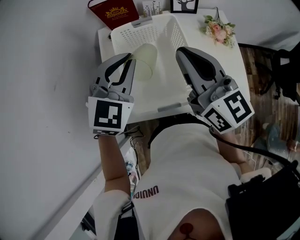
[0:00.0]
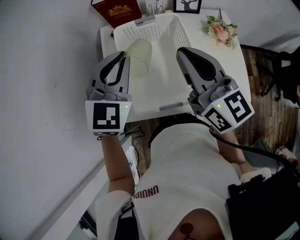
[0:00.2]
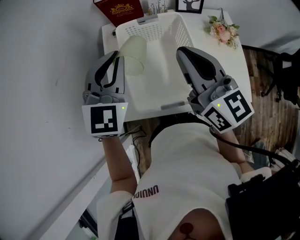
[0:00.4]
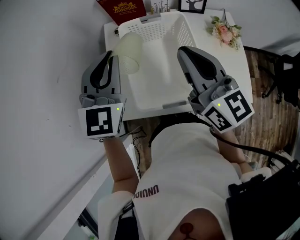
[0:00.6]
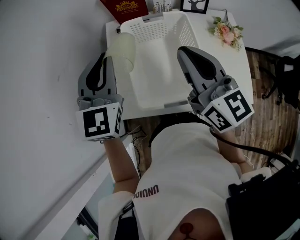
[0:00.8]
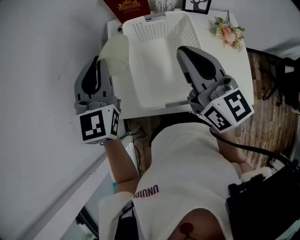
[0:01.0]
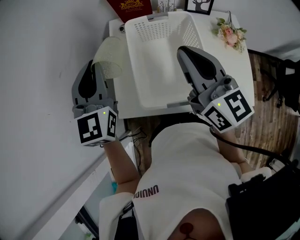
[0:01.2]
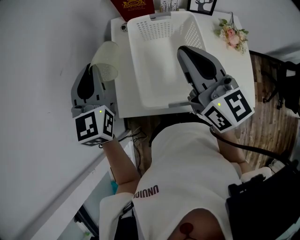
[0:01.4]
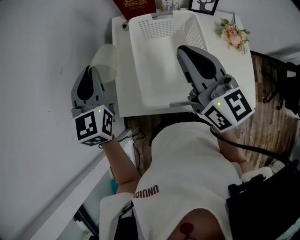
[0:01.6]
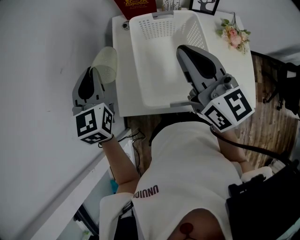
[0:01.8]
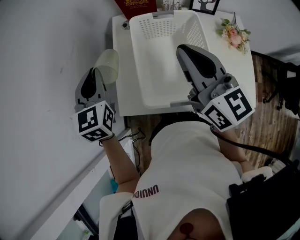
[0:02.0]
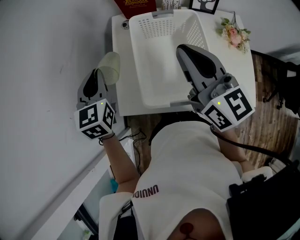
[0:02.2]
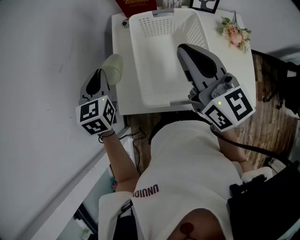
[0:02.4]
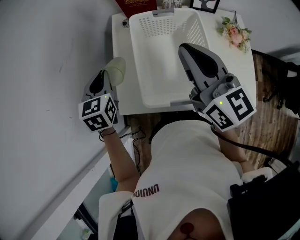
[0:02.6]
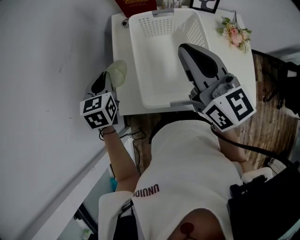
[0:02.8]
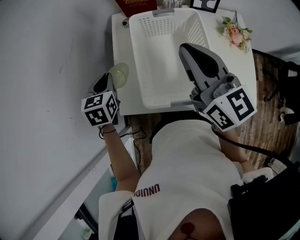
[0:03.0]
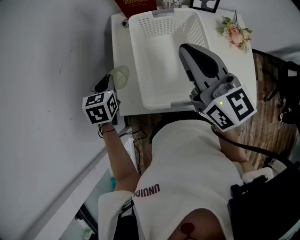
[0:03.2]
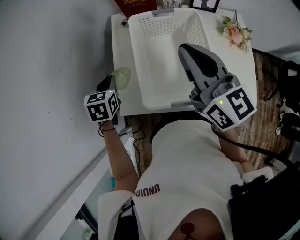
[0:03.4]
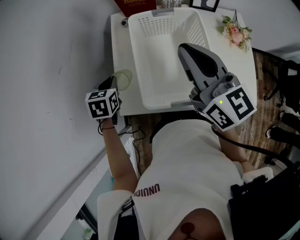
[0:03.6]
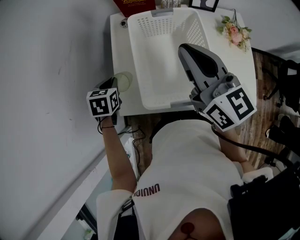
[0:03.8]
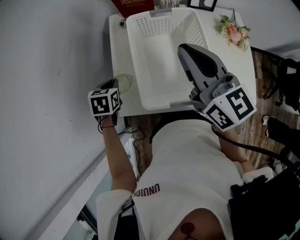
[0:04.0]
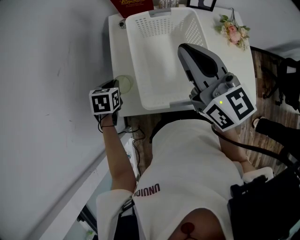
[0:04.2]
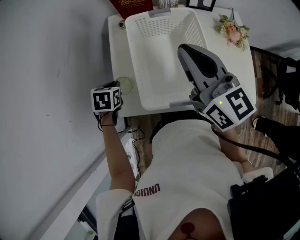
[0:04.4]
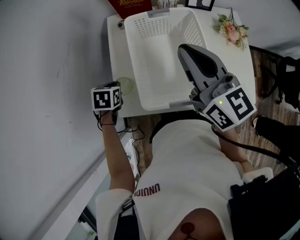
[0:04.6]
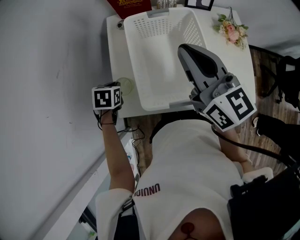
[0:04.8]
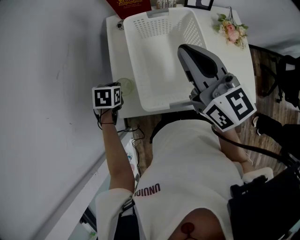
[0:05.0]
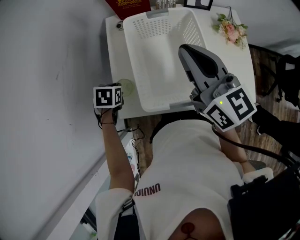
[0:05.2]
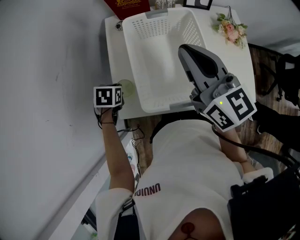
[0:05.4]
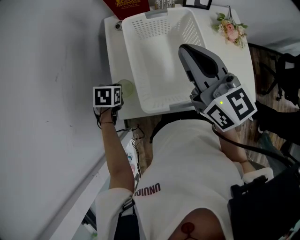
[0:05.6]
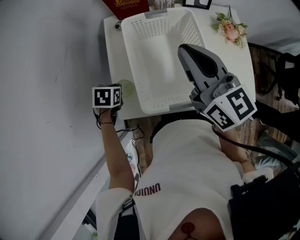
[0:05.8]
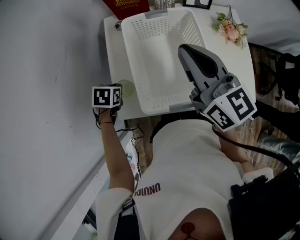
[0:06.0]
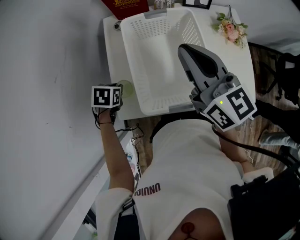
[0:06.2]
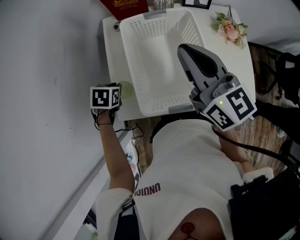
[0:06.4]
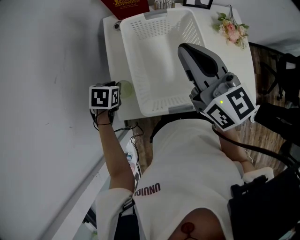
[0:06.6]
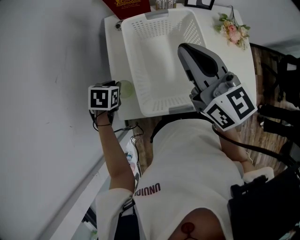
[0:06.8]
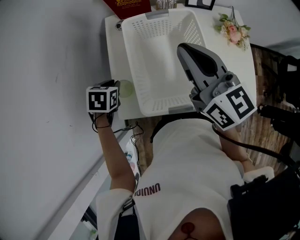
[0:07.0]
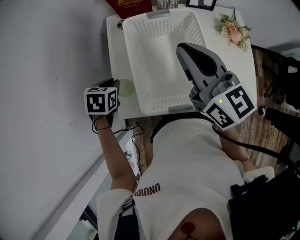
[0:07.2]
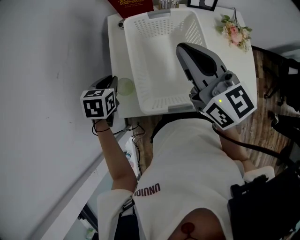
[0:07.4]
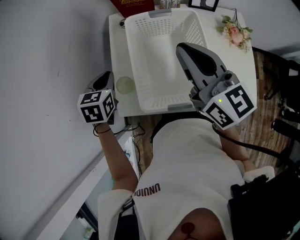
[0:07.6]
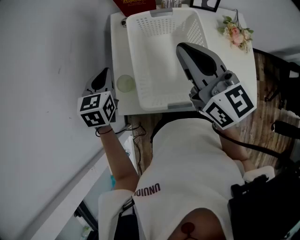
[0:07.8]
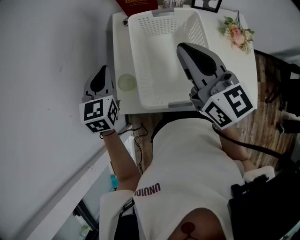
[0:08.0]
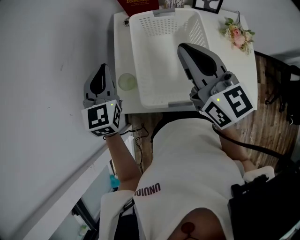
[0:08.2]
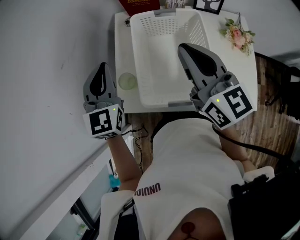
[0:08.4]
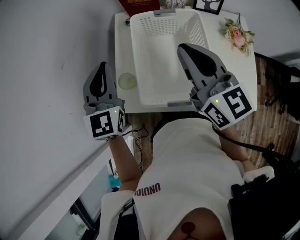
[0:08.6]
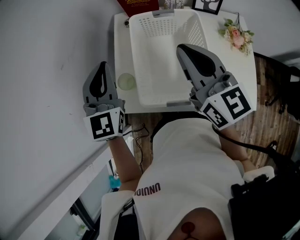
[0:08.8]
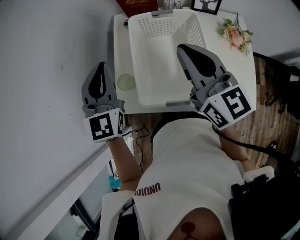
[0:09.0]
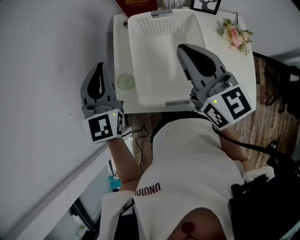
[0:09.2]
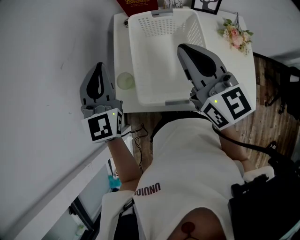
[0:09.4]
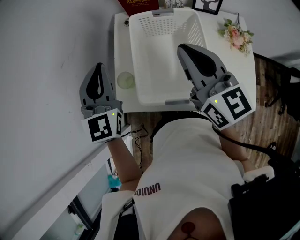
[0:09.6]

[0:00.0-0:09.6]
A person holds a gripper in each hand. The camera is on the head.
0:00.0 to 0:01.6: The left gripper is displaced to the left by about 20 cm, and swivels some 40 degrees.
0:01.6 to 0:03.2: The left gripper travels downward by about 15 cm, and points its fingers approximately 30 degrees further downward.
0:03.2 to 0:04.8: The left gripper goes about 10 cm downward, and rotates roughly 20 degrees.
0:04.8 to 0:06.4: There are only small adjustments of the grippers.
0:06.4 to 0:08.0: The left gripper travels upward by approximately 20 cm, and tilts its fingers some 50 degrees upward.
0:08.0 to 0:09.6: The left gripper is displaced upward by some 10 cm, and turns by roughly 20 degrees.

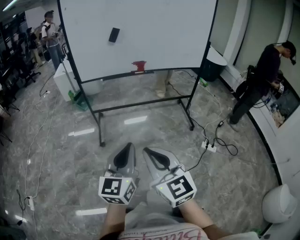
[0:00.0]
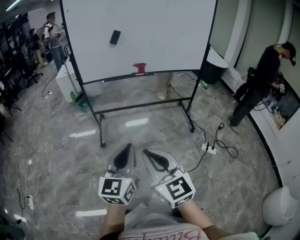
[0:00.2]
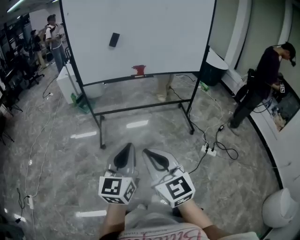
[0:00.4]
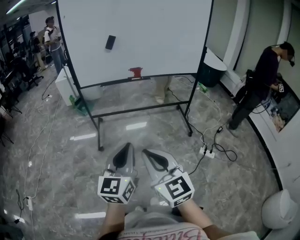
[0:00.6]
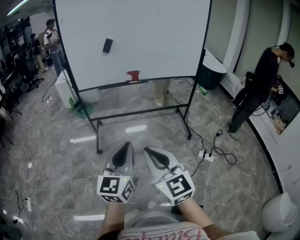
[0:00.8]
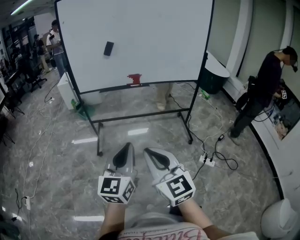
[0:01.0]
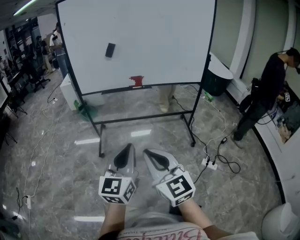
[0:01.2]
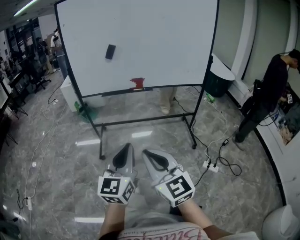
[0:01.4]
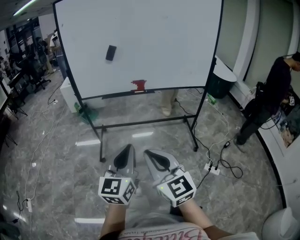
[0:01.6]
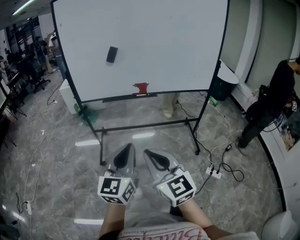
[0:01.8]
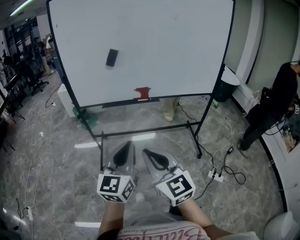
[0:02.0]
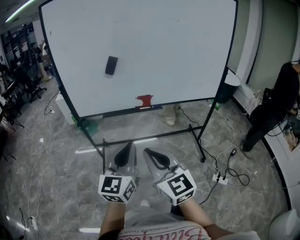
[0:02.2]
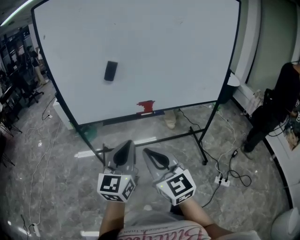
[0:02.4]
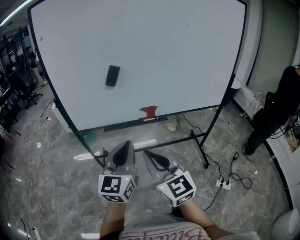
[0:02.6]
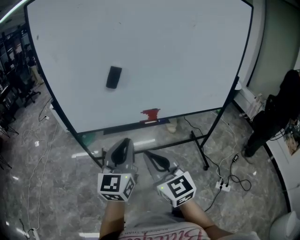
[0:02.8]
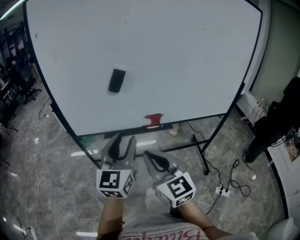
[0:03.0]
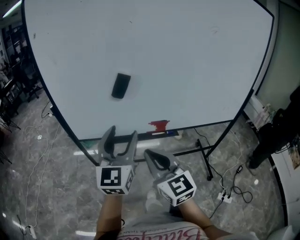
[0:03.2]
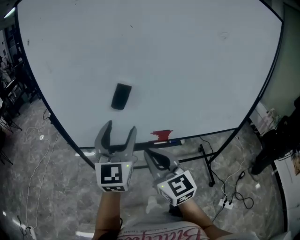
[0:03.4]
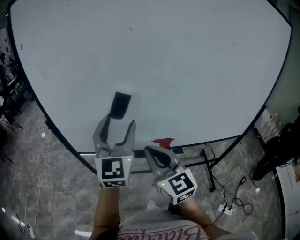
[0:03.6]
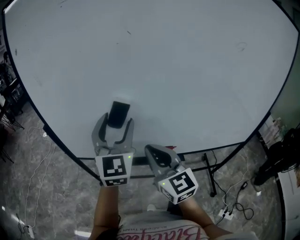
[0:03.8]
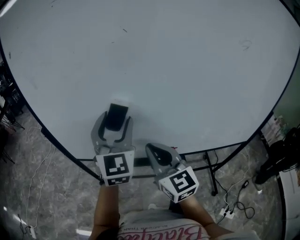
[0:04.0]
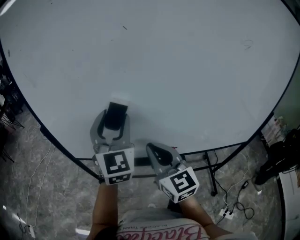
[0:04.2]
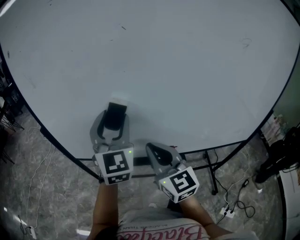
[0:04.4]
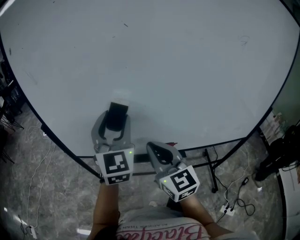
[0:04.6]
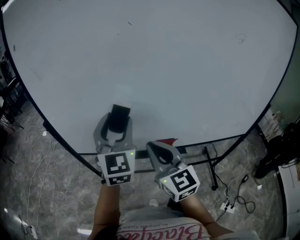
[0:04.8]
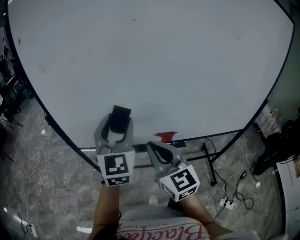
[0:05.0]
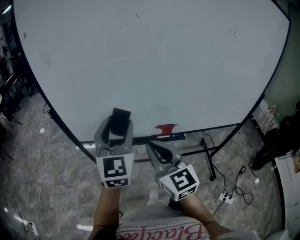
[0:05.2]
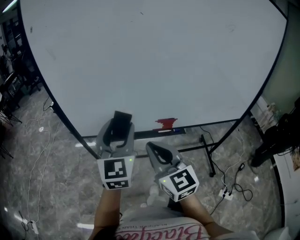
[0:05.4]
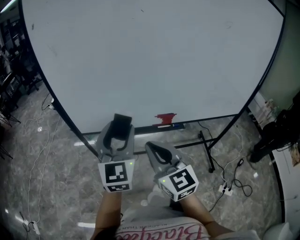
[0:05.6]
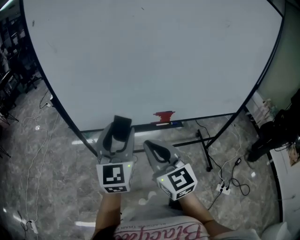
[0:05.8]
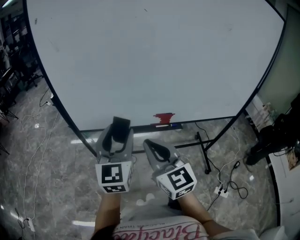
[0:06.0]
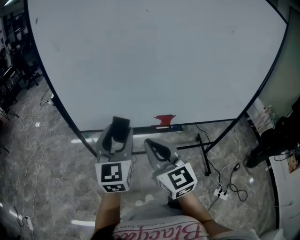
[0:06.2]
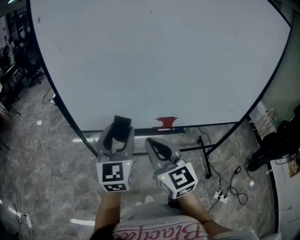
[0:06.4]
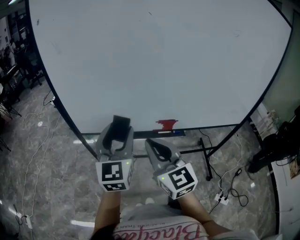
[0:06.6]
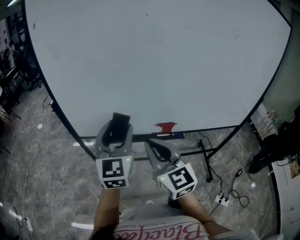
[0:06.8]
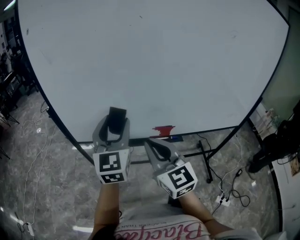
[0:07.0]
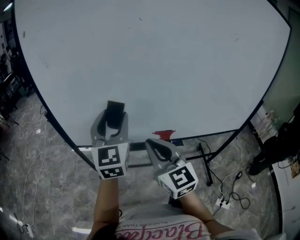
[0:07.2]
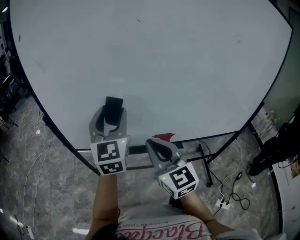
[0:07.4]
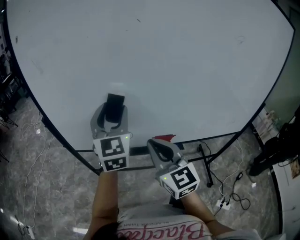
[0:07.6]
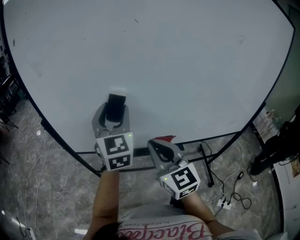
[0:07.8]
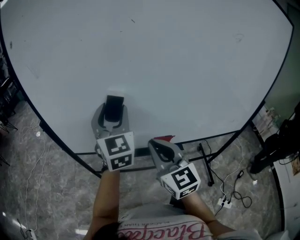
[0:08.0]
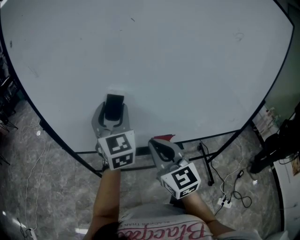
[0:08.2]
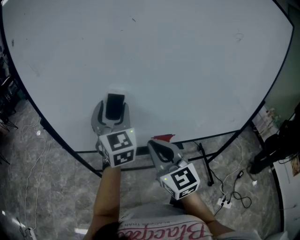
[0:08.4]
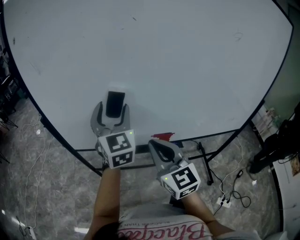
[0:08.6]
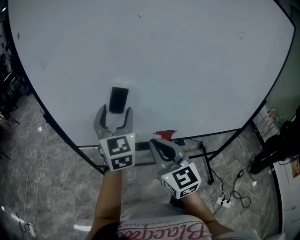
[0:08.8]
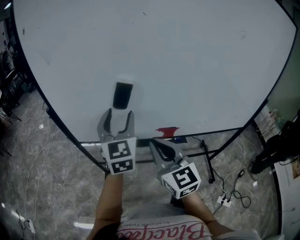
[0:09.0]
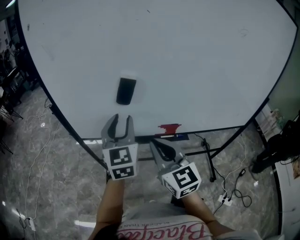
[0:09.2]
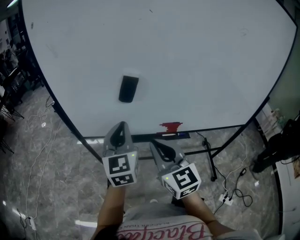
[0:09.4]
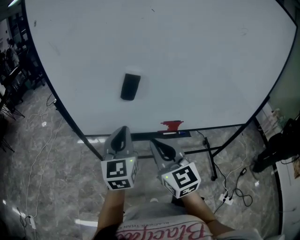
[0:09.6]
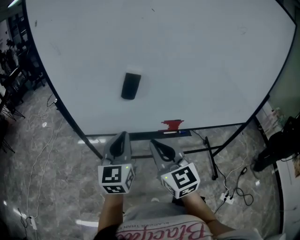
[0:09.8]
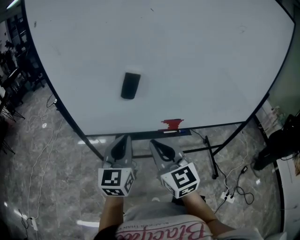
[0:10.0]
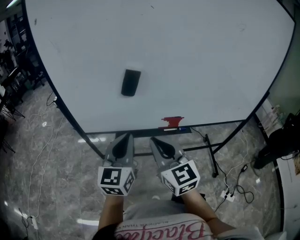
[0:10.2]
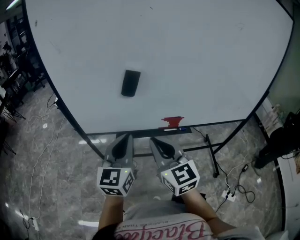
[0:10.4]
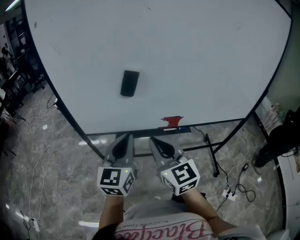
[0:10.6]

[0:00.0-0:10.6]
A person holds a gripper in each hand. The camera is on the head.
0:00.0 to 0:01.6: Both grippers travel together forward and to the right, about 15 cm.
0:01.6 to 0:03.0: The two grippers go about 35 cm forward. The left gripper opens its fingers.
0:03.0 to 0:04.6: The two grippers go approximately 20 cm forward. The left gripper changes its angle by about 30 degrees.
0:04.6 to 0:06.0: The right gripper shifts roughly 15 cm backward and to the left; the left gripper heads backward and downward, covering approximately 15 cm.
0:06.0 to 0:07.6: The left gripper shifts some 15 cm forward and upward; the right gripper travels forward and to the right by roughly 10 cm.
0:07.6 to 0:09.0: The left gripper ends up some 5 cm from where it was.
0:09.0 to 0:10.6: The left gripper is displaced backward and downward by approximately 15 cm, rotates some 20 degrees, and closes up.

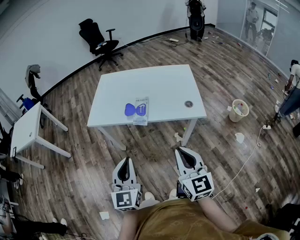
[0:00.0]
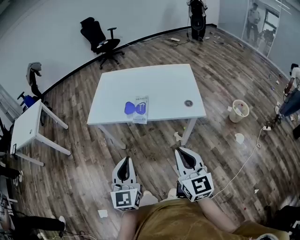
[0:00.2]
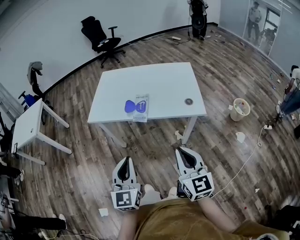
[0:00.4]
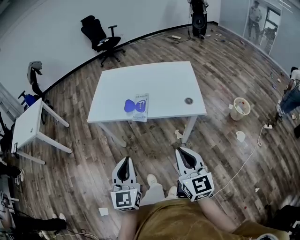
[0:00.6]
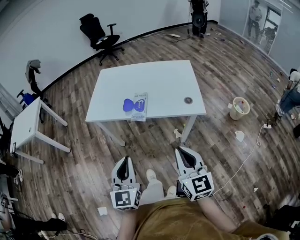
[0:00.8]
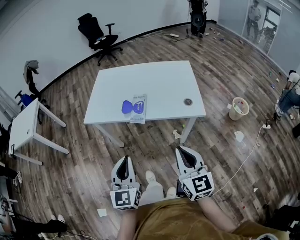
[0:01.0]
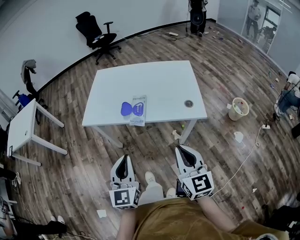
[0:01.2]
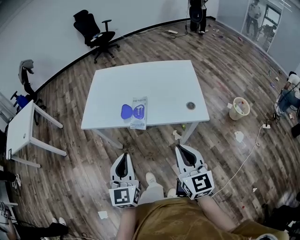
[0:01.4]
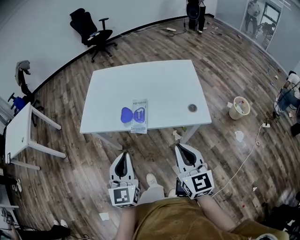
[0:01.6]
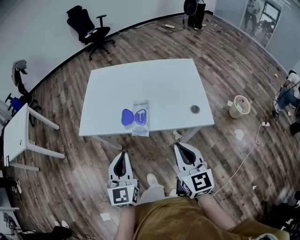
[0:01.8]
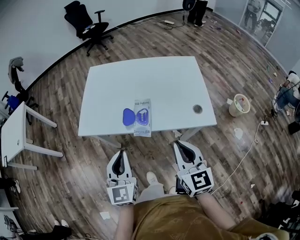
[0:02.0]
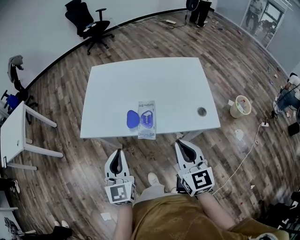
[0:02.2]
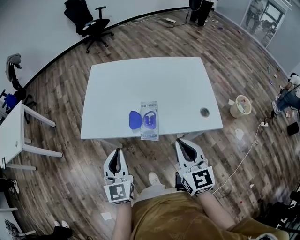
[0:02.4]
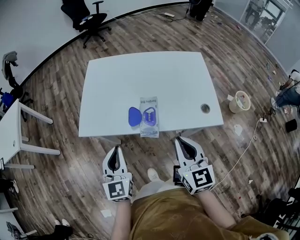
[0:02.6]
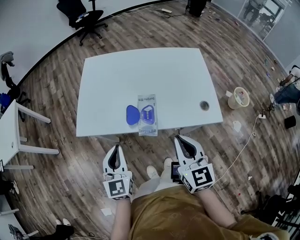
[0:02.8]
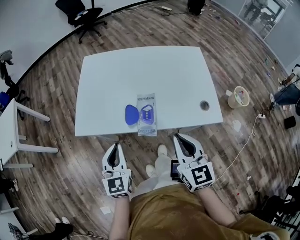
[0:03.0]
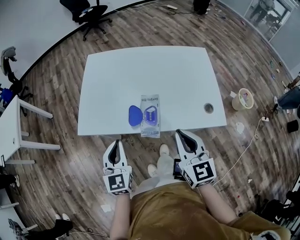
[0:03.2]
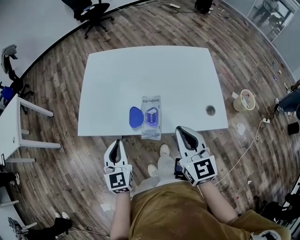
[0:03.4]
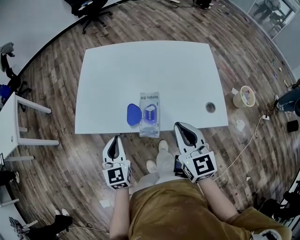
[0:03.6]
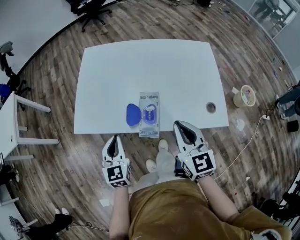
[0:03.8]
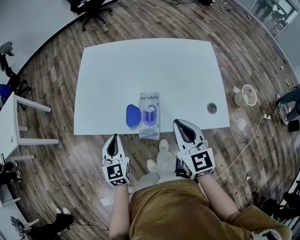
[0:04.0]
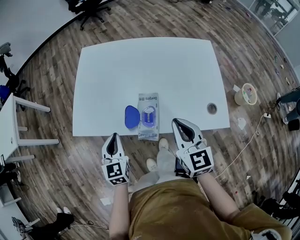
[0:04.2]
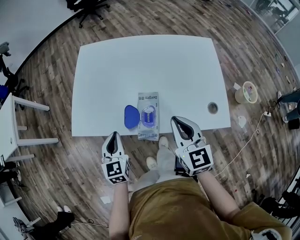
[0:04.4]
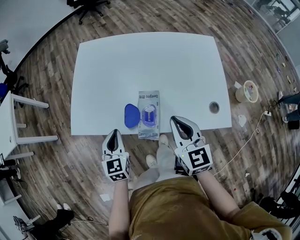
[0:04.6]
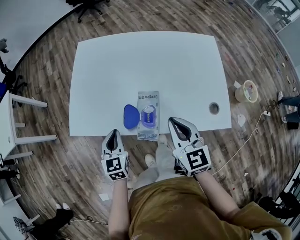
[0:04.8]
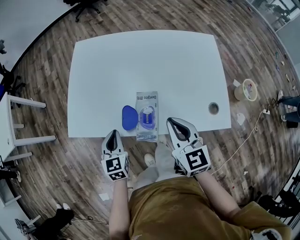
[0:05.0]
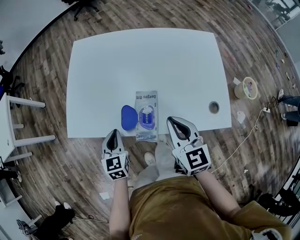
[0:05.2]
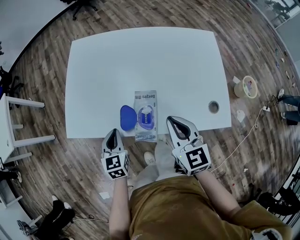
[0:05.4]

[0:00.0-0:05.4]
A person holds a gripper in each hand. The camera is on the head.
0:00.0 to 0:01.4: Both grippers travel together forward, roughly 10 cm.
0:01.4 to 0:02.8: The two grippers go roughly 20 cm forward and to the left.
0:02.8 to 0:04.0: The right gripper shifts some 10 cm forward. Meanwhile the left gripper travels forward and downward by about 10 cm.
0:04.0 to 0:05.4: The left gripper heads downward, covering some 5 cm. The right gripper changes place by some 5 cm.
